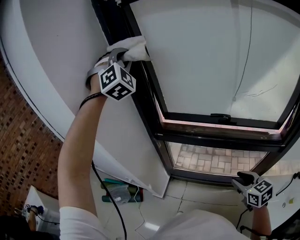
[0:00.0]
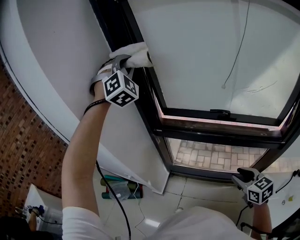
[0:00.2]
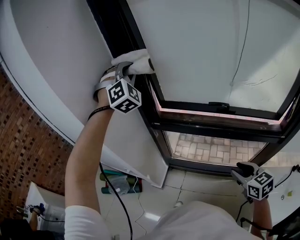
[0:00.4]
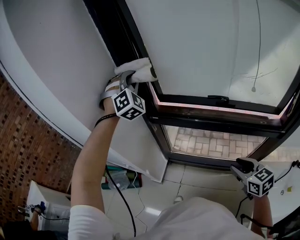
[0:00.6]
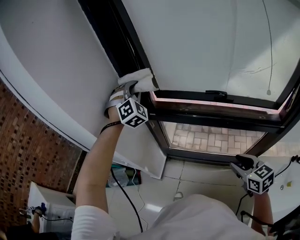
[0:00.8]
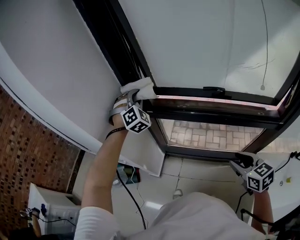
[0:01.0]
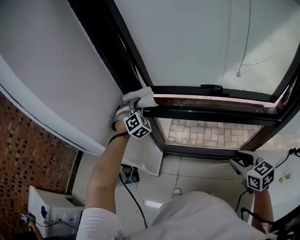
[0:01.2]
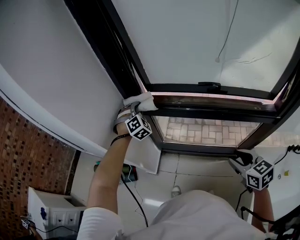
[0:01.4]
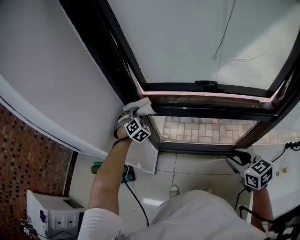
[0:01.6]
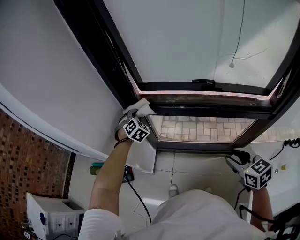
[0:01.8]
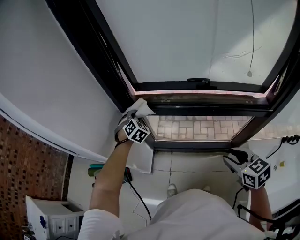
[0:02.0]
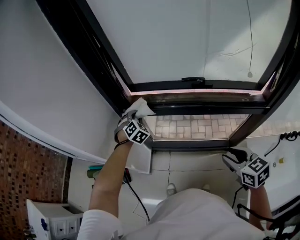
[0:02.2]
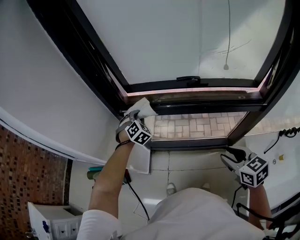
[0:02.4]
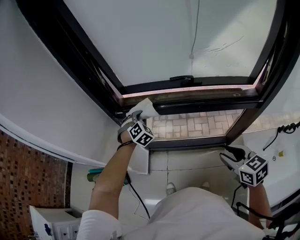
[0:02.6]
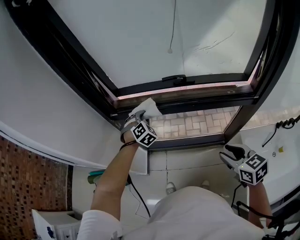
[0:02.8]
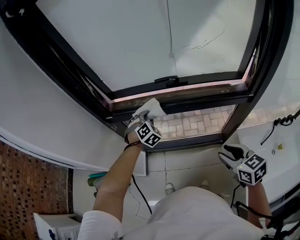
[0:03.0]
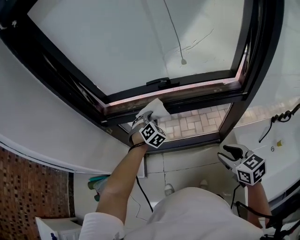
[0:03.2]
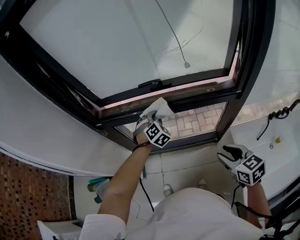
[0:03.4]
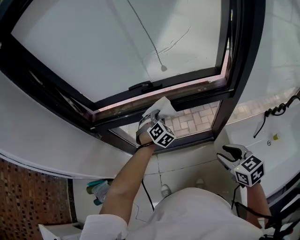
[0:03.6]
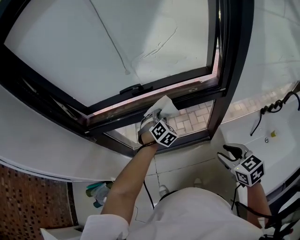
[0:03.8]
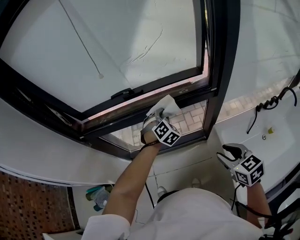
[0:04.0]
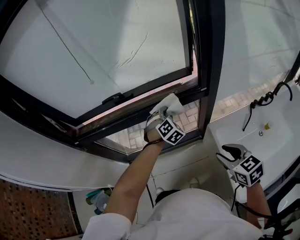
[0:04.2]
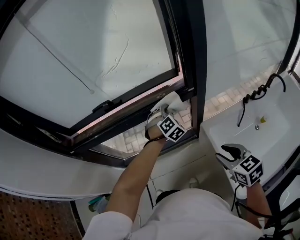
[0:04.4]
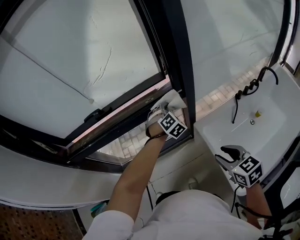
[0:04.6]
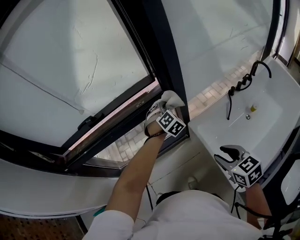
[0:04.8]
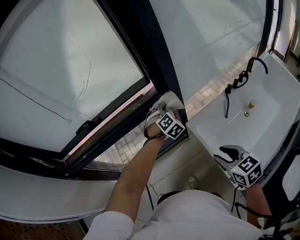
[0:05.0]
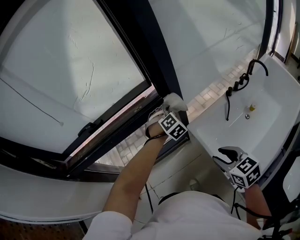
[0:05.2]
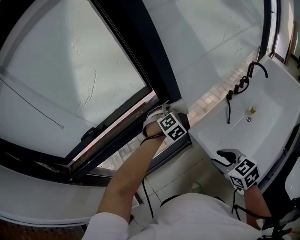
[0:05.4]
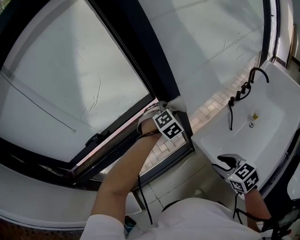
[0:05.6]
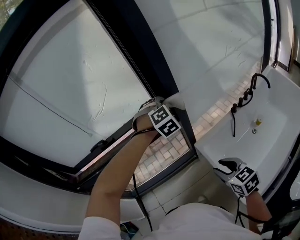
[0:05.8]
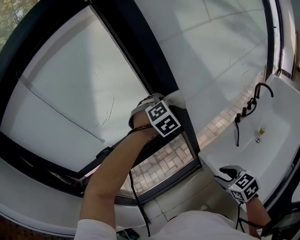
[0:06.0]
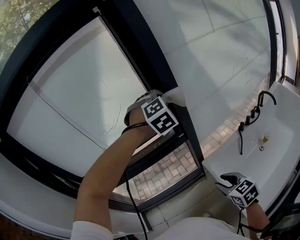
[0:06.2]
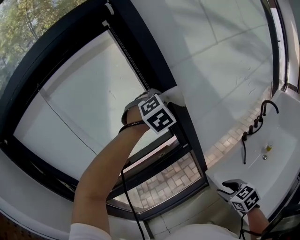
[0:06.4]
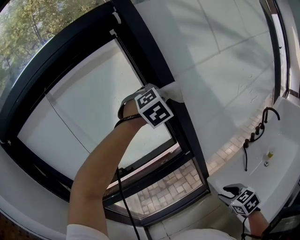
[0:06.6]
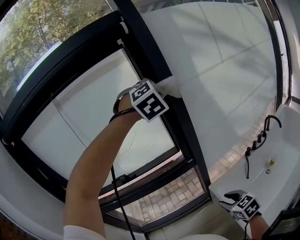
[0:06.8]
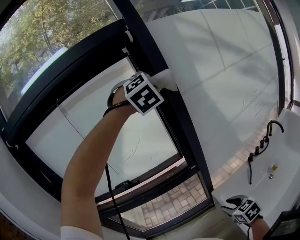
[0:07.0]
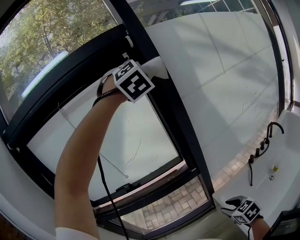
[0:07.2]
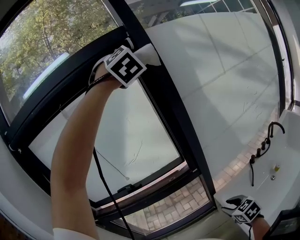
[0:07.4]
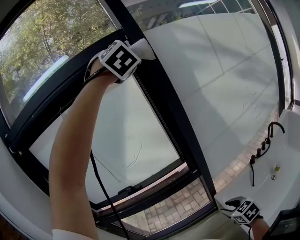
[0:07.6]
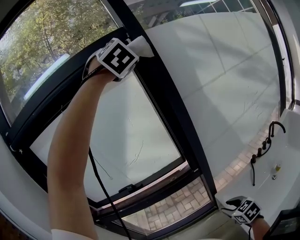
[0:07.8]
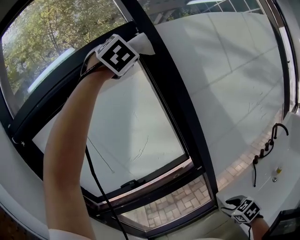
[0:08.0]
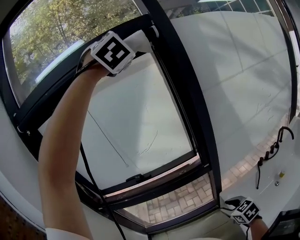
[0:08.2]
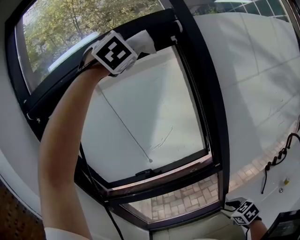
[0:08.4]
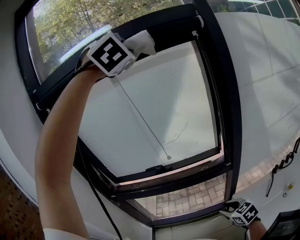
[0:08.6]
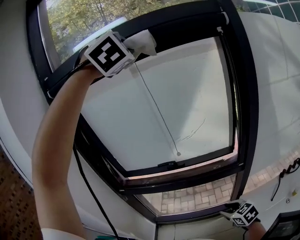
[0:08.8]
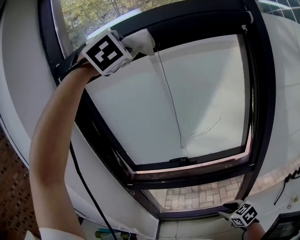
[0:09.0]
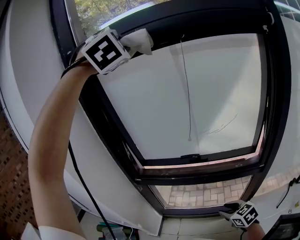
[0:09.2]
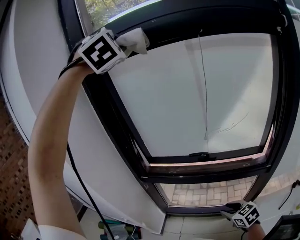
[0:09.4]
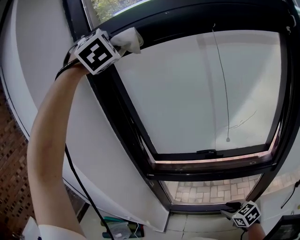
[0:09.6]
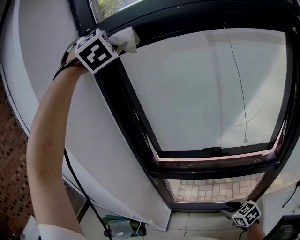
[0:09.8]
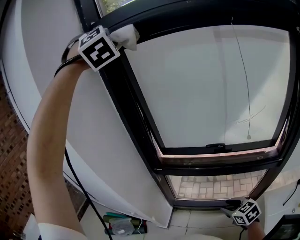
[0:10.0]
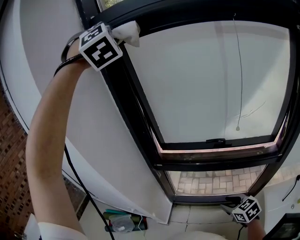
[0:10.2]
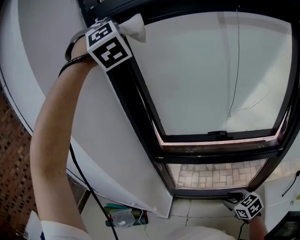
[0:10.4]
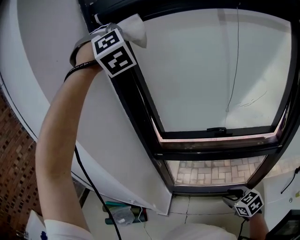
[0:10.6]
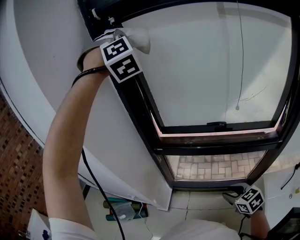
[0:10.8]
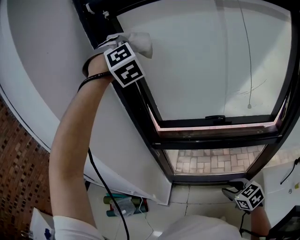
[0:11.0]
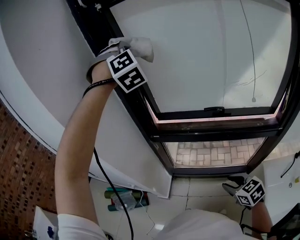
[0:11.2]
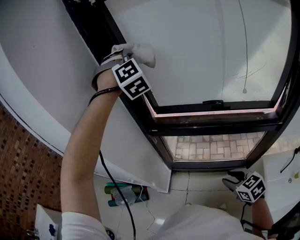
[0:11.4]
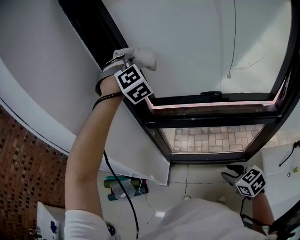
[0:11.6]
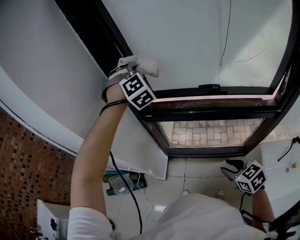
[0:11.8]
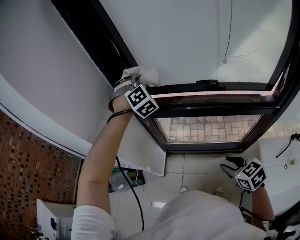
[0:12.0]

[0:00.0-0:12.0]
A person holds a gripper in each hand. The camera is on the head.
0:00.0 to 0:01.6: The left gripper moves downward, approximately 50 cm, and points its fingers some 30 degrees further downward.
0:01.6 to 0:03.0: The right gripper heads to the right and backward, covering about 10 cm. The left gripper shifts about 25 cm to the right and backward.
0:03.0 to 0:04.4: The left gripper moves to the right, some 40 cm; the right gripper goes about 20 cm to the right and backward.
0:04.4 to 0:06.0: The left gripper shifts approximately 30 cm upward and to the right, and rotates some 30 degrees.
0:06.0 to 0:07.6: The left gripper is displaced upward by approximately 50 cm, and points its fingers about 30 degrees further upward.
0:07.6 to 0:09.0: The right gripper goes approximately 25 cm to the left and forward, and swivels some 30 degrees. The left gripper shifts about 40 cm to the left, and swivels approximately 20 degrees.
0:09.0 to 0:10.4: The right gripper is displaced to the left and forward by approximately 15 cm, while the left gripper goes roughly 30 cm to the left and forward.
0:10.4 to 0:12.0: The left gripper shifts approximately 50 cm downward, and turns by approximately 30 degrees.

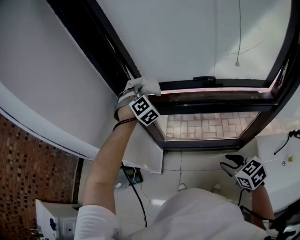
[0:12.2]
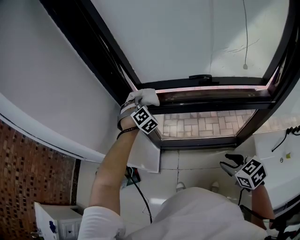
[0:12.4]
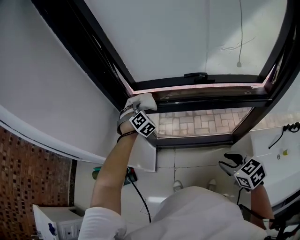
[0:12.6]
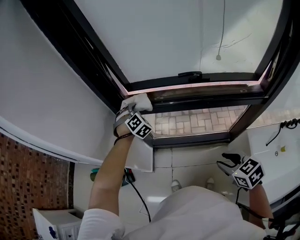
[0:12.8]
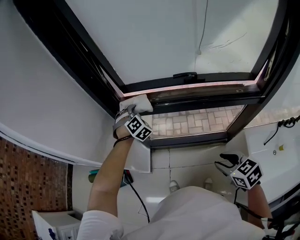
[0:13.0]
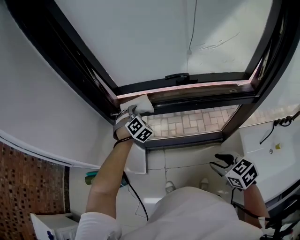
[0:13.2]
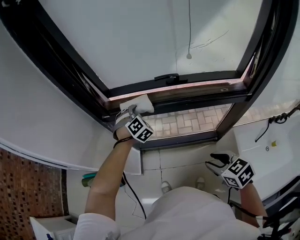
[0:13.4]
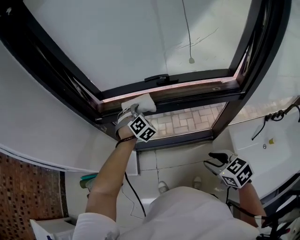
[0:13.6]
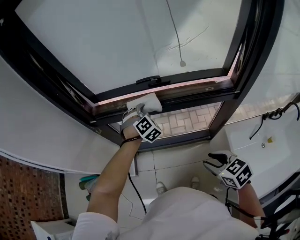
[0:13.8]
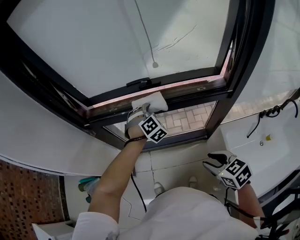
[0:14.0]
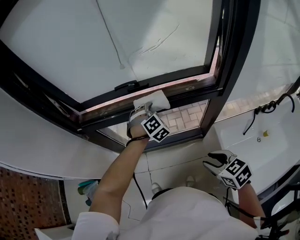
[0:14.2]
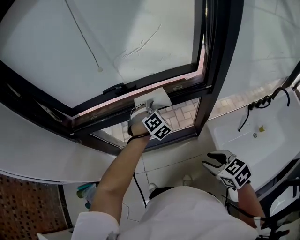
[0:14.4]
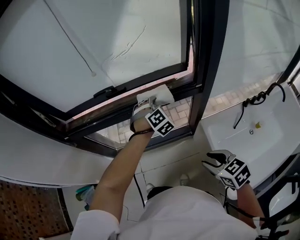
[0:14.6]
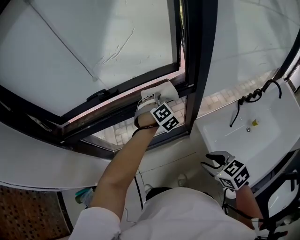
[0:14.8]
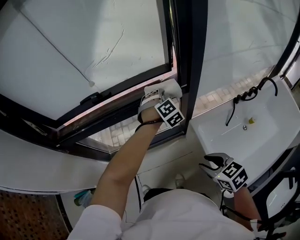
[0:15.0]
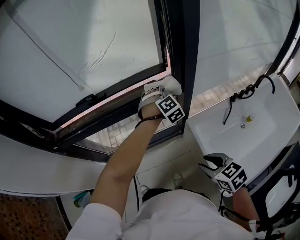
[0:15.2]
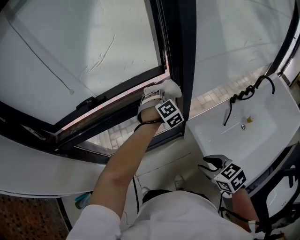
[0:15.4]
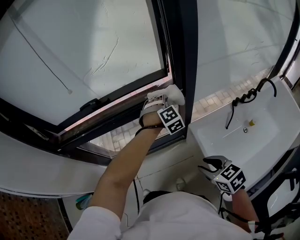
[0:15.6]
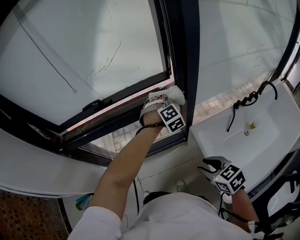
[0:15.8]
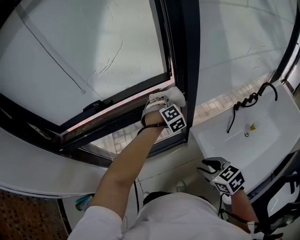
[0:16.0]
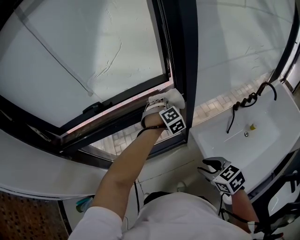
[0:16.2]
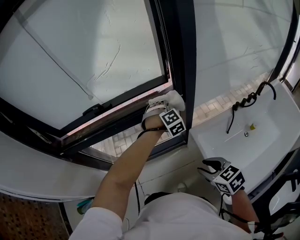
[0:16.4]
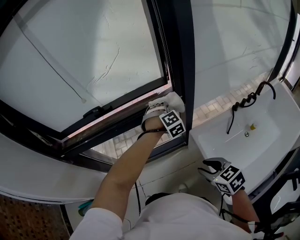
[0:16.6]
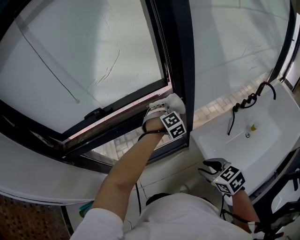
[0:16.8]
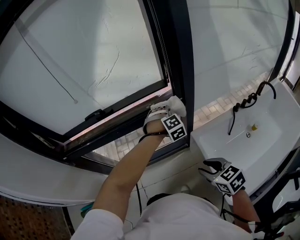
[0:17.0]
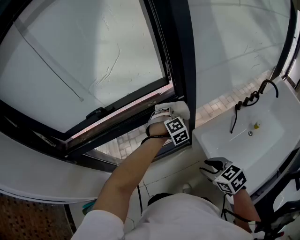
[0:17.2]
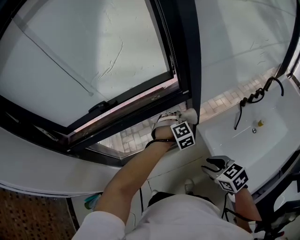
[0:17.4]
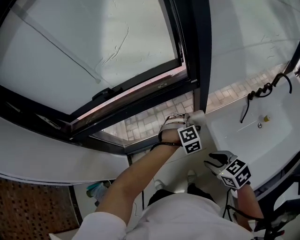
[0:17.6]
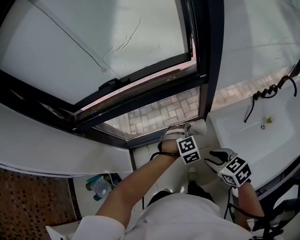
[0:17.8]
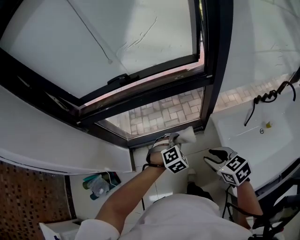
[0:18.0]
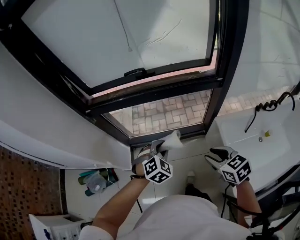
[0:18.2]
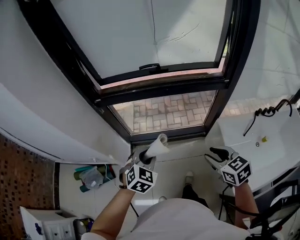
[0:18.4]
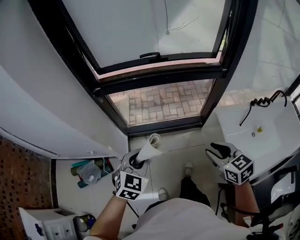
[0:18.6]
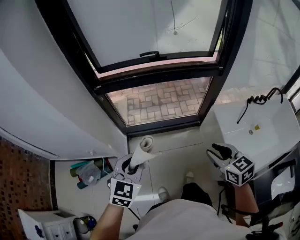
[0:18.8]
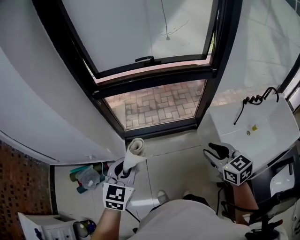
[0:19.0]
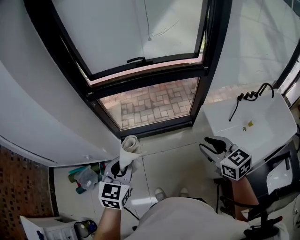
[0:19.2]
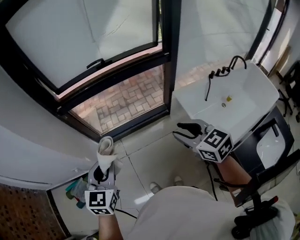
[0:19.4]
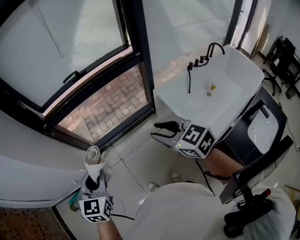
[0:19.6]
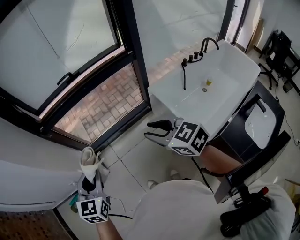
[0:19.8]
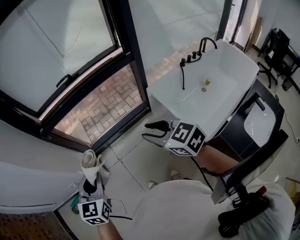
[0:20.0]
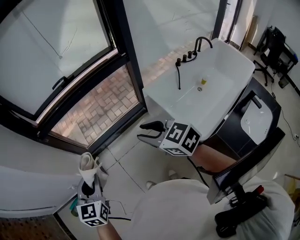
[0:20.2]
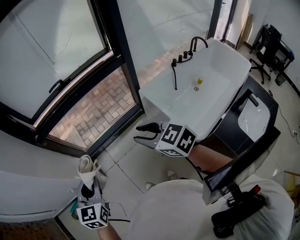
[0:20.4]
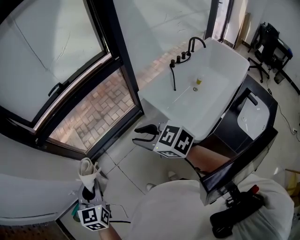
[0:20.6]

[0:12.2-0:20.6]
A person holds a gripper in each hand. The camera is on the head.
0:12.2 to 0:13.6: The right gripper travels to the right and backward by approximately 10 cm. The left gripper heads to the right, downward and backward, covering some 20 cm.
0:13.6 to 0:15.0: The right gripper shifts roughly 20 cm to the right and backward; the left gripper goes some 40 cm to the right, and swivels roughly 20 degrees.
0:15.0 to 0:16.4: The grippers make only small movements.
0:16.4 to 0:17.8: The left gripper goes some 20 cm backward, downward and to the left.
0:17.8 to 0:19.2: The right gripper heads to the left, upward and backward, covering roughly 25 cm; the left gripper heads to the left, backward and upward, covering approximately 50 cm, and rolls counterclockwise, seen from behind, by about 60 degrees.
0:19.2 to 0:20.6: The left gripper changes place by some 5 cm.

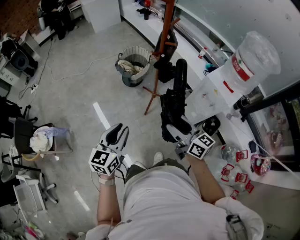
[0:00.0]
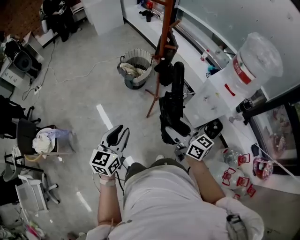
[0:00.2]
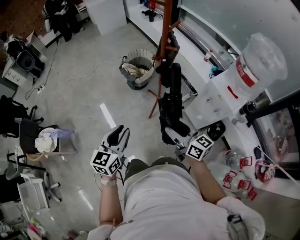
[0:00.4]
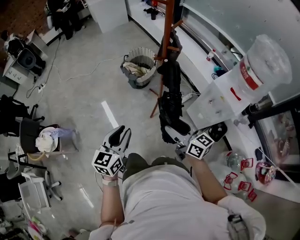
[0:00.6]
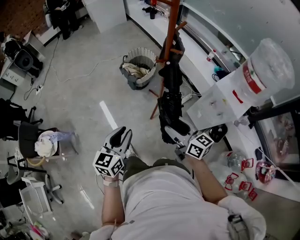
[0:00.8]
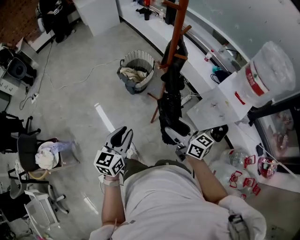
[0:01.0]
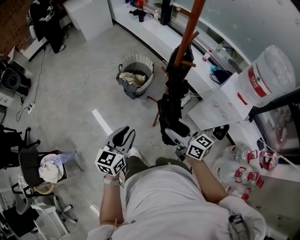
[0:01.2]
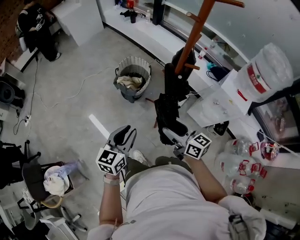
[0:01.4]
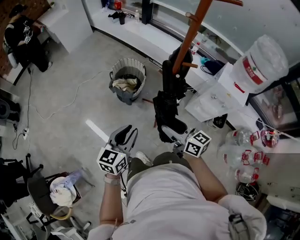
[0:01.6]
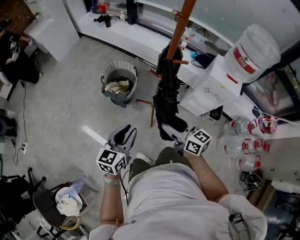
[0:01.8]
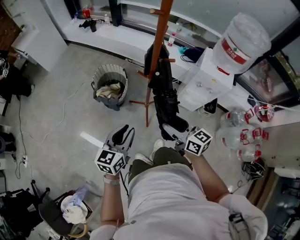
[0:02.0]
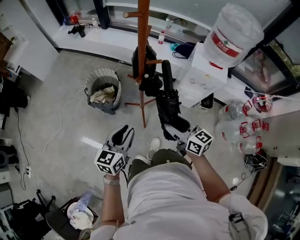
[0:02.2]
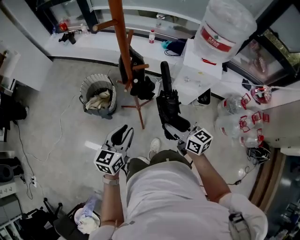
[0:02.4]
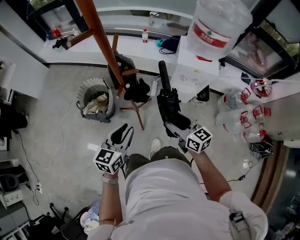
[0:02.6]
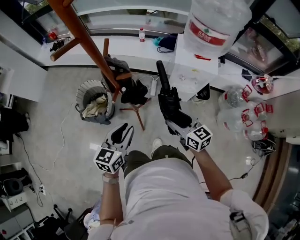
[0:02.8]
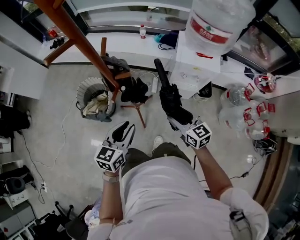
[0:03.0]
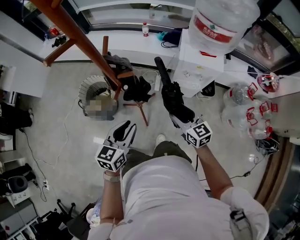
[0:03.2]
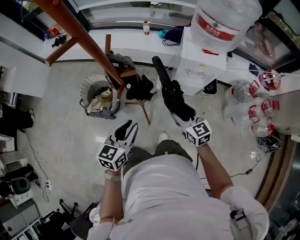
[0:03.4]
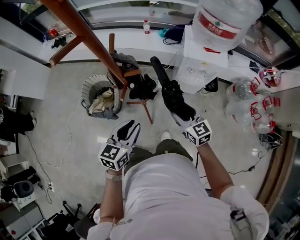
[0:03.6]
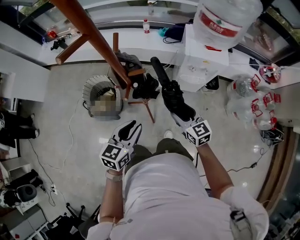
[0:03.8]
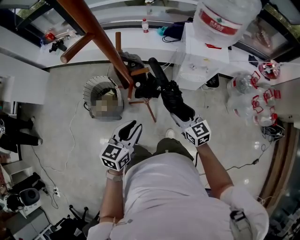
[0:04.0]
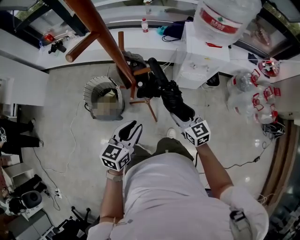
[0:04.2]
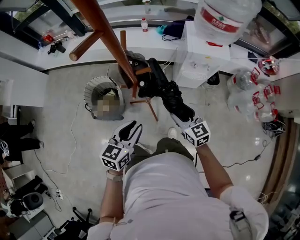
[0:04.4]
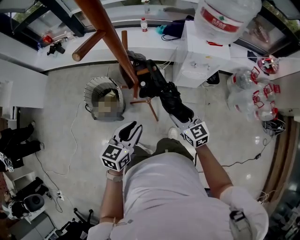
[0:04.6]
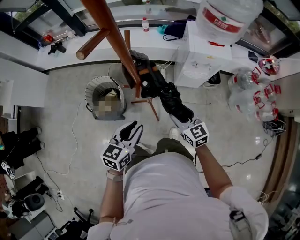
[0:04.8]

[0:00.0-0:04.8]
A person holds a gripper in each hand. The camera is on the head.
0:00.0 to 0:01.6: The left gripper moves forward, approximately 25 cm, and changes its angle by roughly 20 degrees; the right gripper is displaced forward and to the left by about 25 cm.
0:01.6 to 0:03.2: The left gripper moves some 25 cm, and rotates some 30 degrees. Meanwhile the right gripper shifts by approximately 25 cm, and turns by roughly 40 degrees.
0:03.2 to 0:04.8: The two grippers go about 10 cm to the left.
